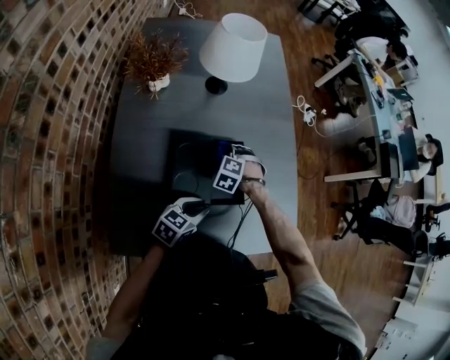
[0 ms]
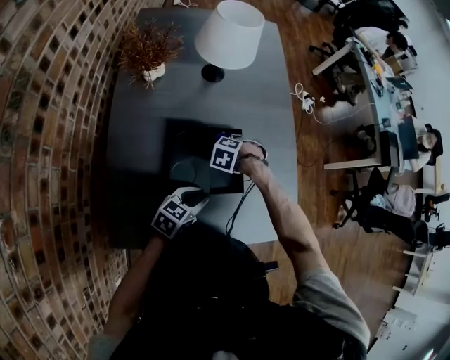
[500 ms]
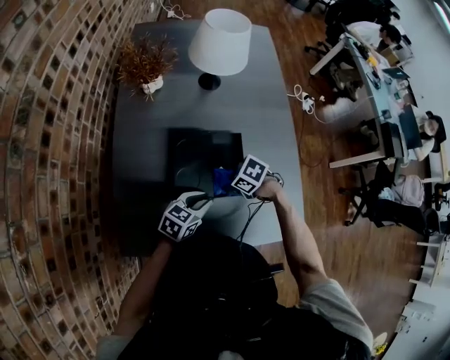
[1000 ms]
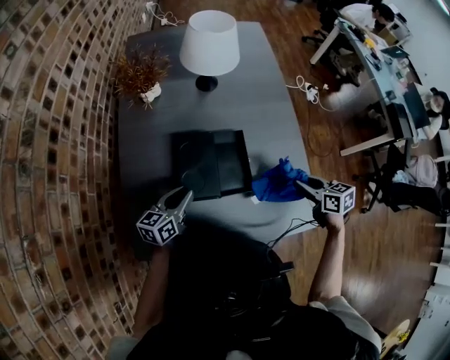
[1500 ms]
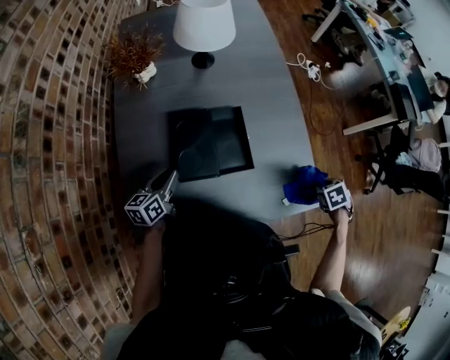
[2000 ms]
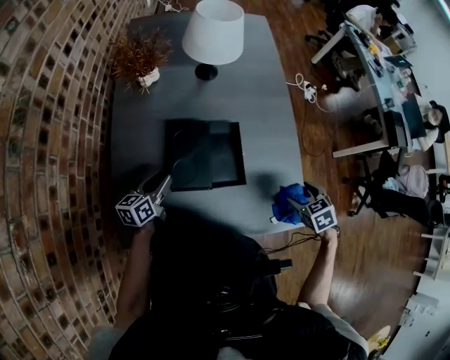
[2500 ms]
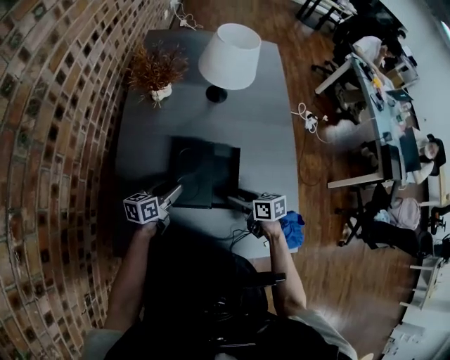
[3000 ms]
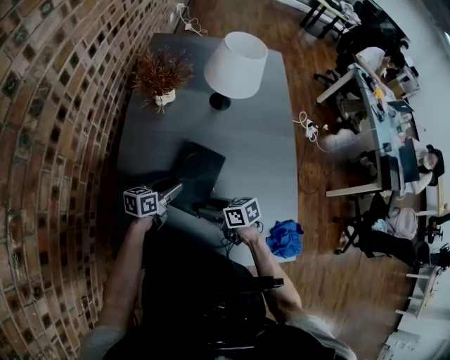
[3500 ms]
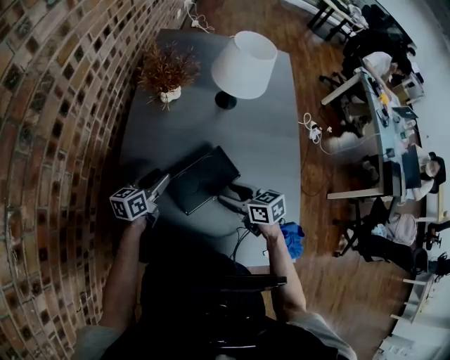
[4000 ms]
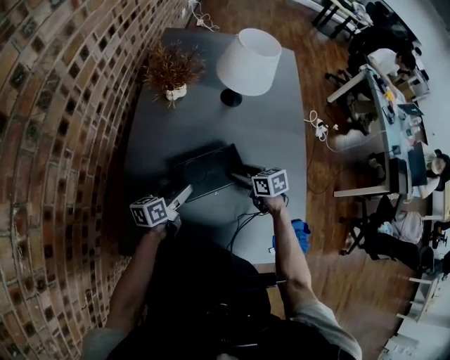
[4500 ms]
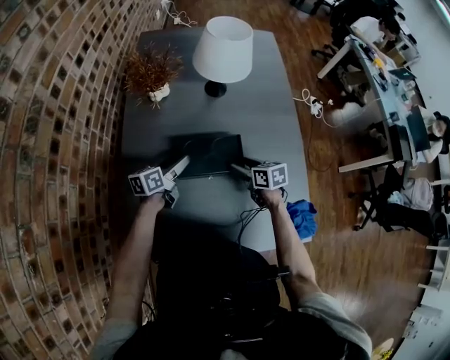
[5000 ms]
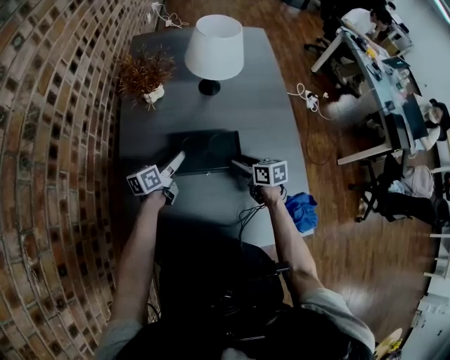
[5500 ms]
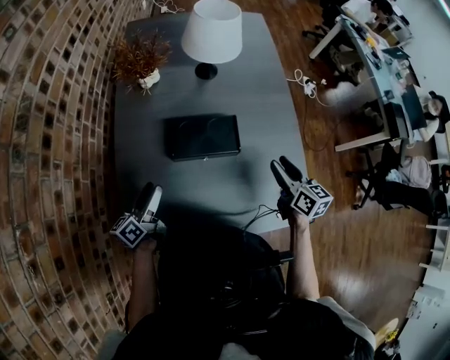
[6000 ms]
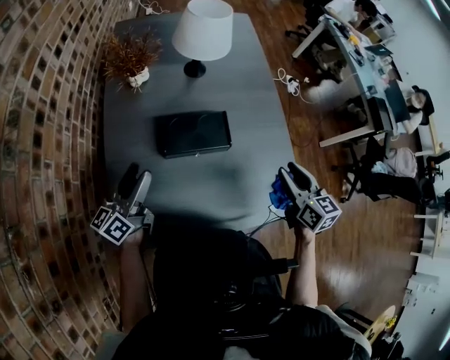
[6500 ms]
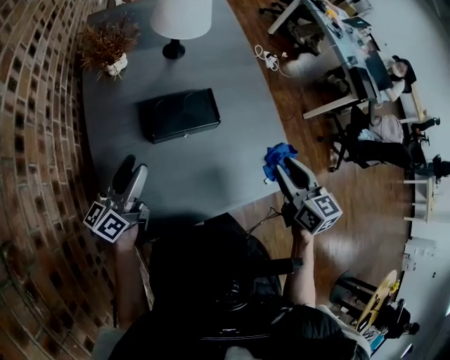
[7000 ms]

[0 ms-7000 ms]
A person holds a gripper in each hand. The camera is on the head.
0 ms to 2000 ms: The left gripper moves approximately 15 cm, and changes its angle by about 30 degrees, while the right gripper travels upward and back again, approximately 15 cm each way, and rolls clockwise, seen from behind, by approximately 60 degrees.
2000 ms to 3500 ms: The right gripper moves some 40 cm, points its fingers about 40 degrees further upward, and opens its fingers; the left gripper changes place by some 5 cm, and opens its fingers.
3500 ms to 5000 ms: The left gripper moves forward, roughly 5 cm, and opens. Meanwhile the right gripper travels to the right and forward by approximately 15 cm, and changes its angle by some 20 degrees.
5000 ms to 7000 ms: The left gripper moves upward, backward and to the left, approximately 20 cm, and rotates some 30 degrees; the right gripper shifts about 30 cm upward, backward and to the right, and changes its angle by some 40 degrees.

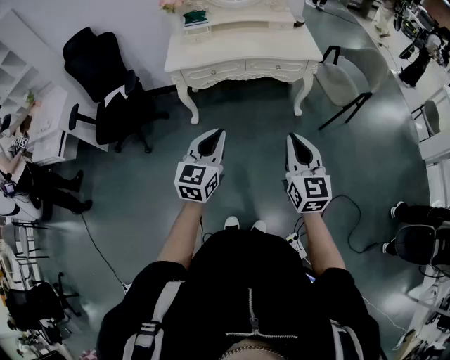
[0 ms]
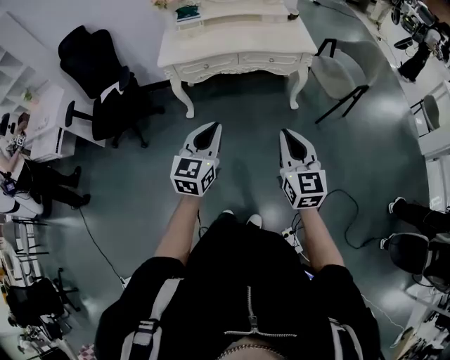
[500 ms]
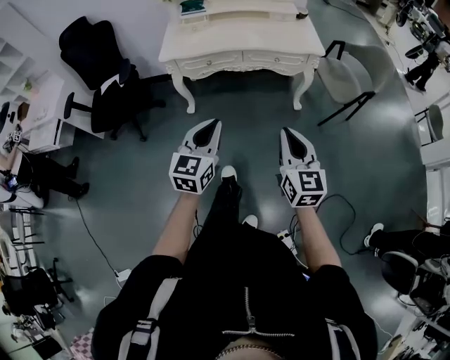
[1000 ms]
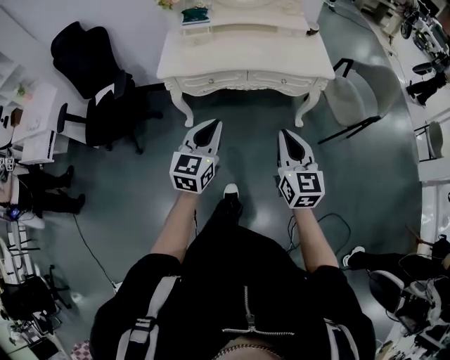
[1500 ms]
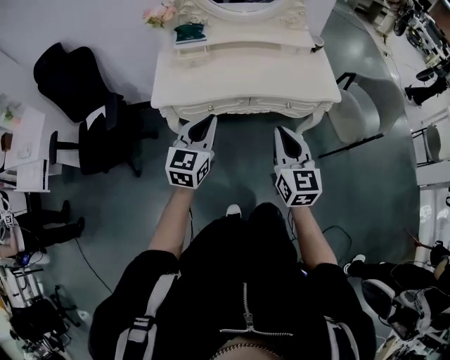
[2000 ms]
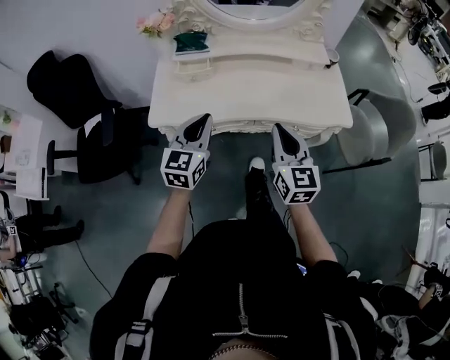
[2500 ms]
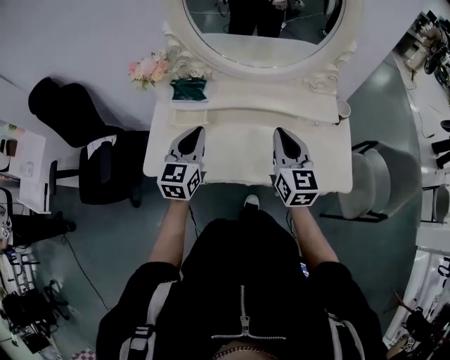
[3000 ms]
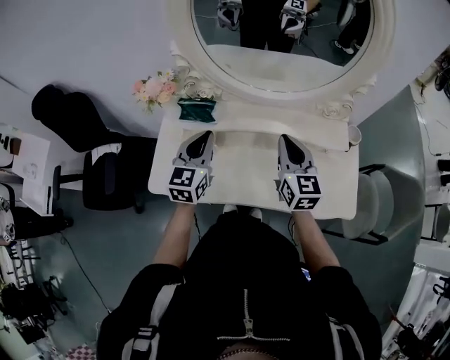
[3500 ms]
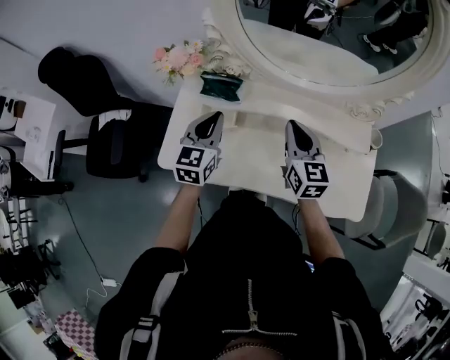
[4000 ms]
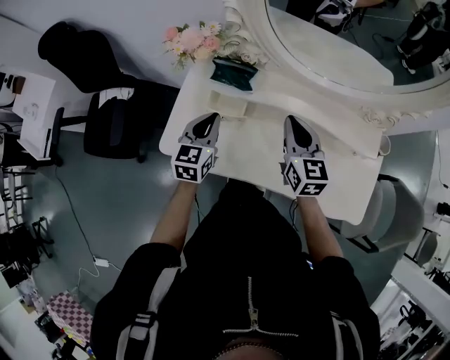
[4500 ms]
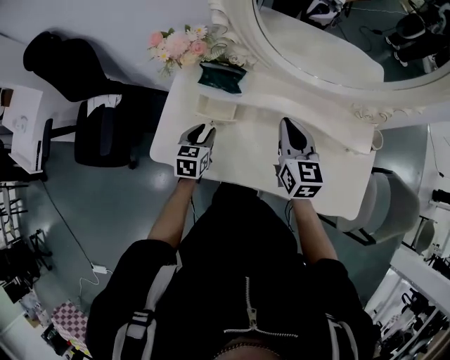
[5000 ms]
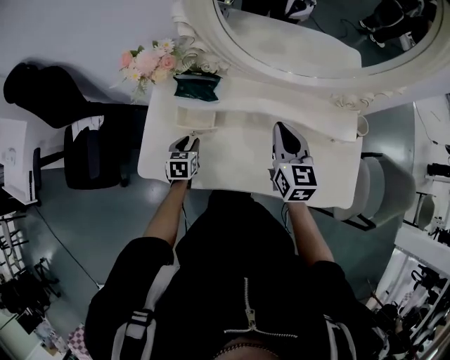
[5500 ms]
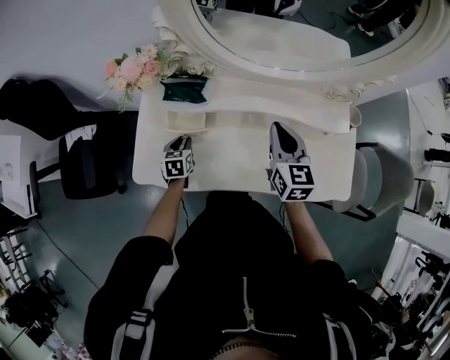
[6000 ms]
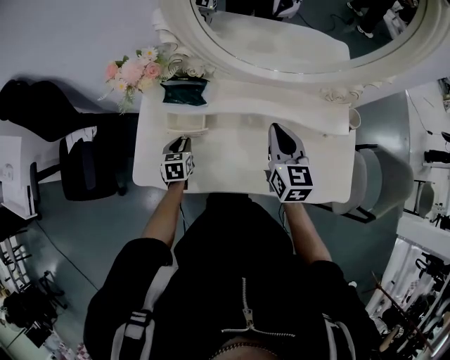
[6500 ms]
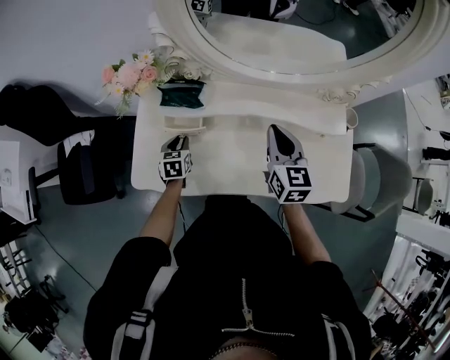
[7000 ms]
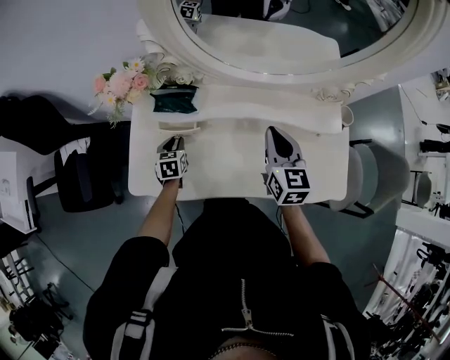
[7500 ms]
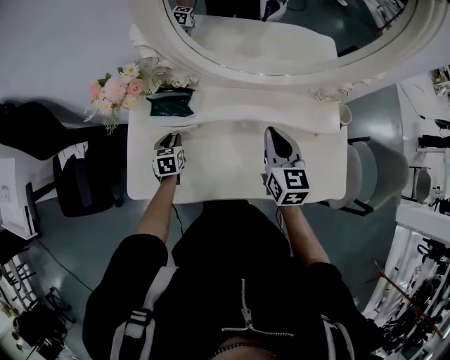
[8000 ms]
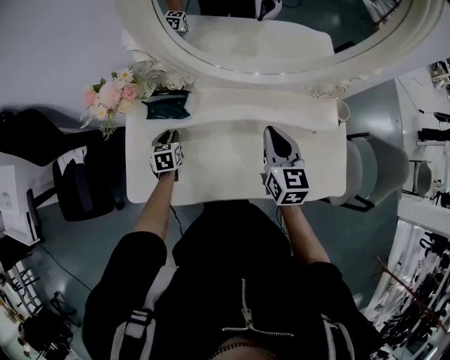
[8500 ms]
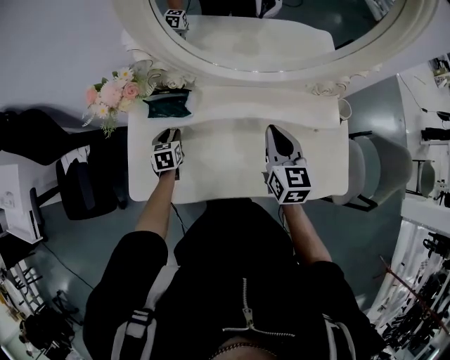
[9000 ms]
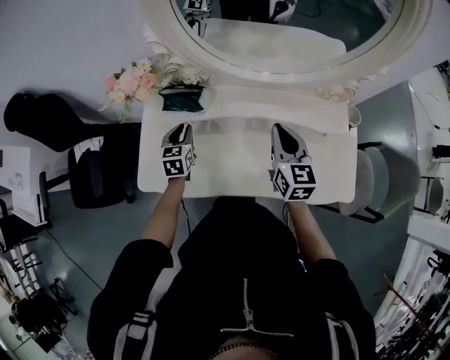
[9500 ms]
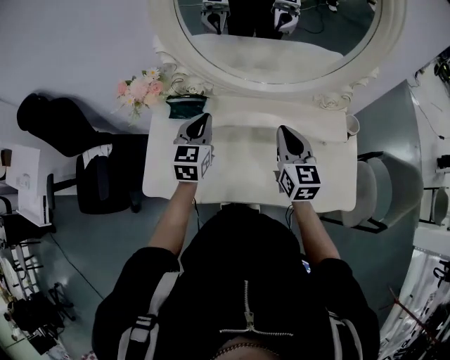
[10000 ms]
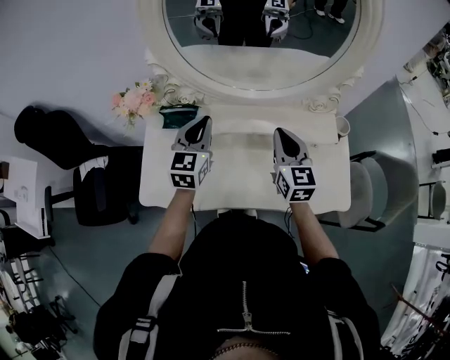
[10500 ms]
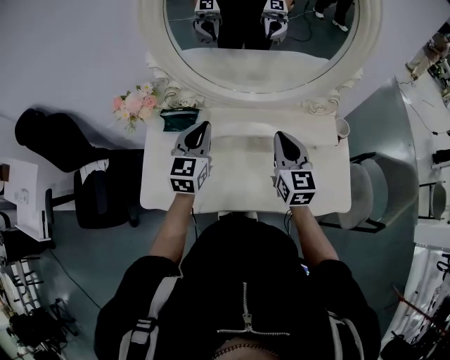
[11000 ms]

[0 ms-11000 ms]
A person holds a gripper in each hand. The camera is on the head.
0 ms to 2000 ms: Both grippers travel together forward, approximately 35 cm.
2000 ms to 3500 ms: Both grippers are carried forward, some 50 cm.
3500 ms to 5500 ms: The left gripper moves downward, about 30 cm, points its fingers some 30 degrees further downward, and opens its fingers. The right gripper heads downward and to the left, covering about 10 cm.
5500 ms to 7500 ms: The left gripper is displaced forward by roughly 5 cm.
7500 ms to 9000 ms: The grippers move only a little.
9000 ms to 11000 ms: The left gripper heads upward and to the right, covering roughly 30 cm, tilts its fingers some 30 degrees upward, and closes its fingers; the right gripper shifts by about 5 cm.

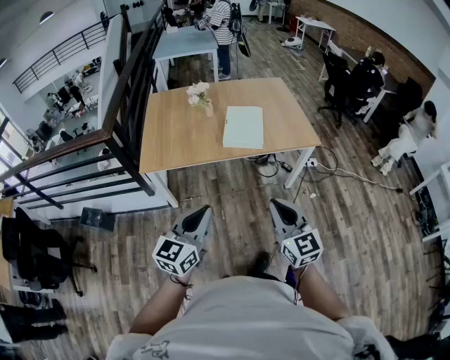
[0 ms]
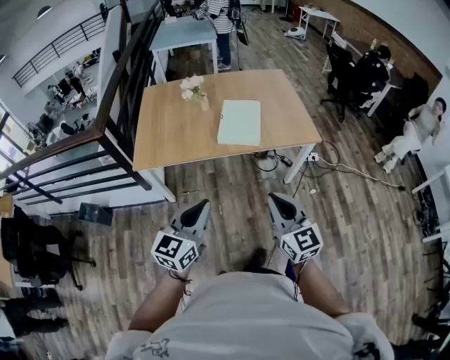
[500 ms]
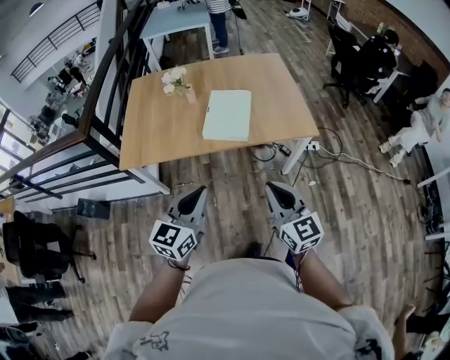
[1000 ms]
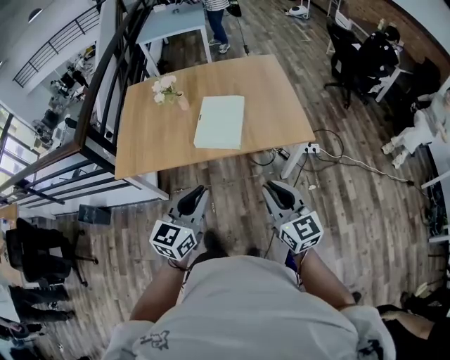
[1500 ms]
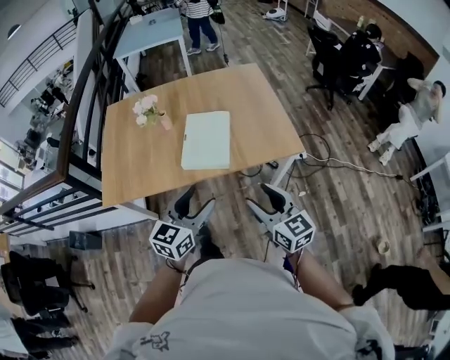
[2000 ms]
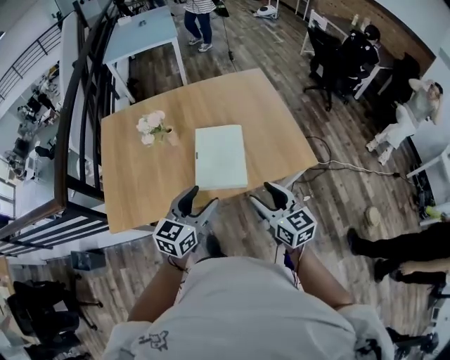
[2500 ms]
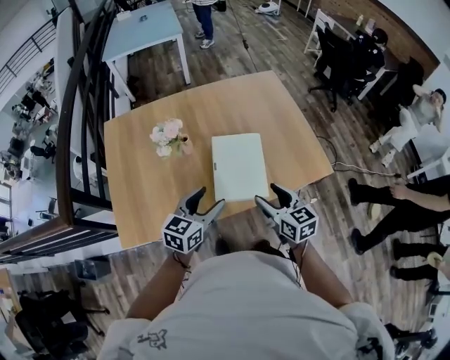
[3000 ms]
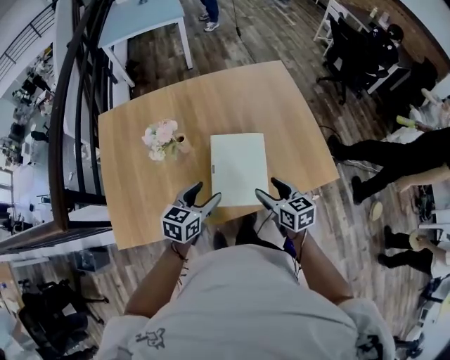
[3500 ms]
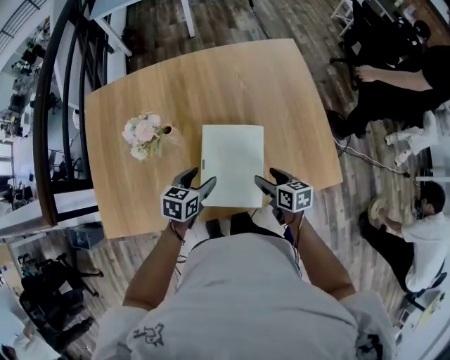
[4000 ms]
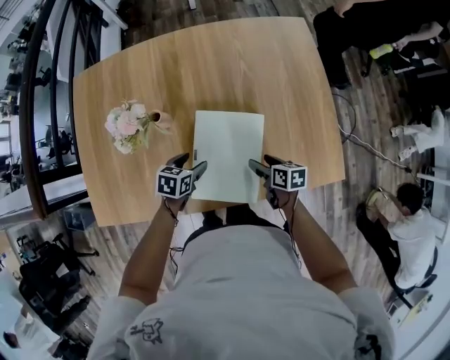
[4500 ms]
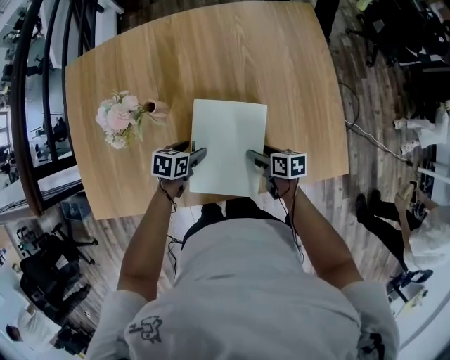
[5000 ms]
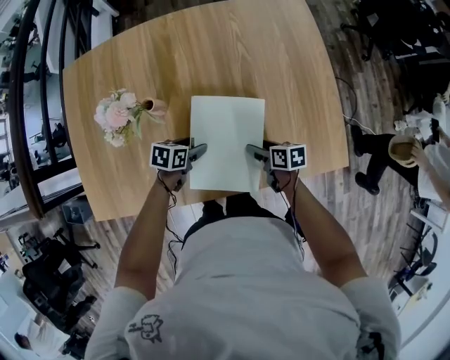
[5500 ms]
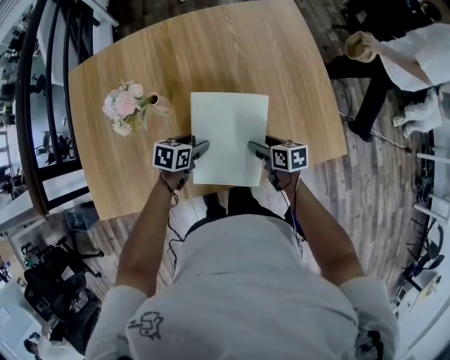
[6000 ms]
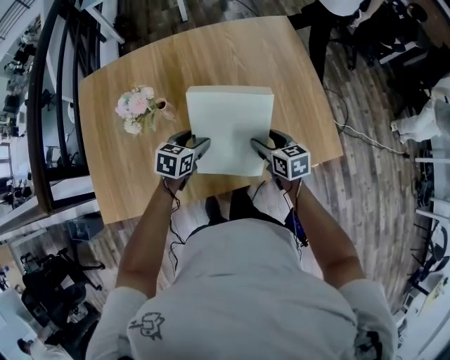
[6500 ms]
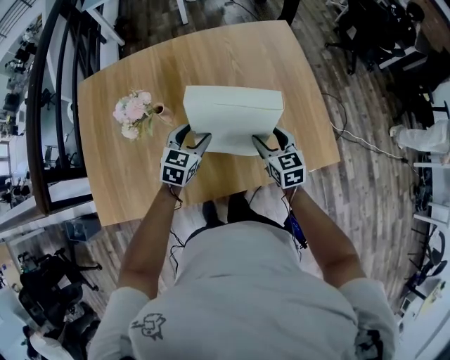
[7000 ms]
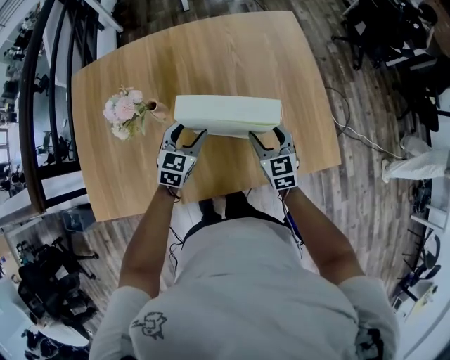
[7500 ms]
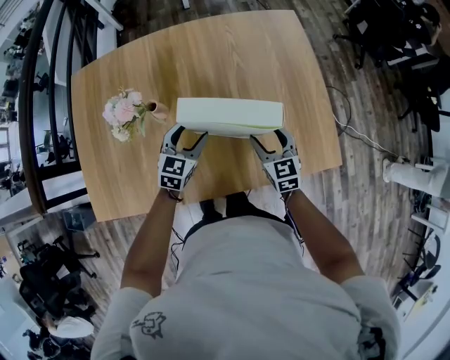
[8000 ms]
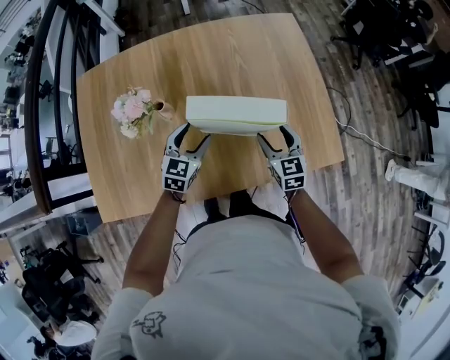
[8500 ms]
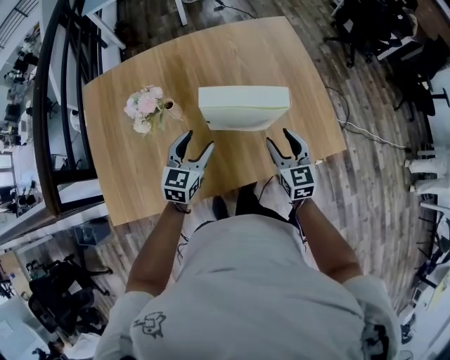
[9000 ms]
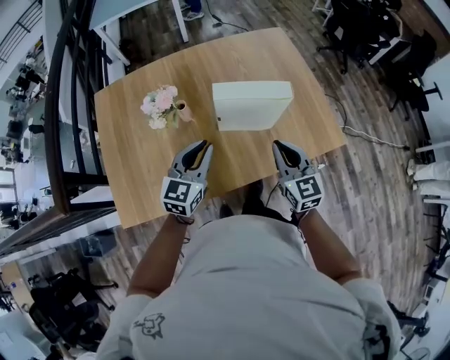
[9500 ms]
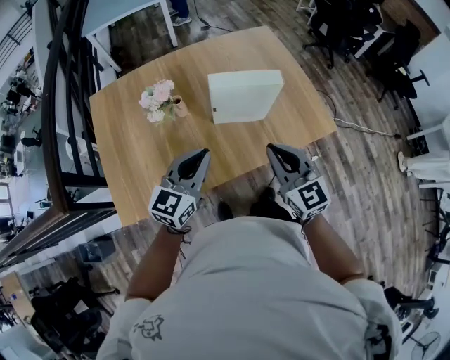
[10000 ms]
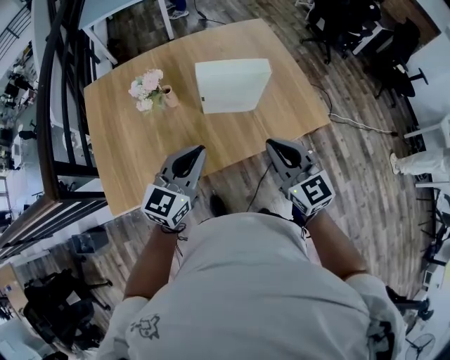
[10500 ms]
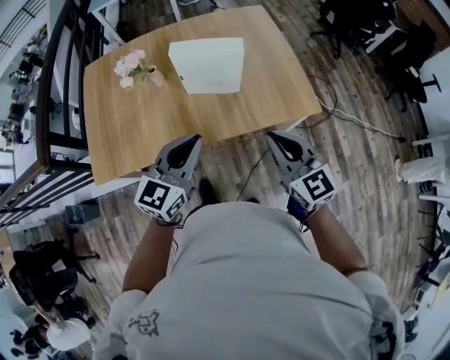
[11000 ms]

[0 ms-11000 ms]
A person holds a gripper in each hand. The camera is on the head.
0 ms to 2000 ms: Both grippers travel together forward and to the right, roughly 30 cm. The left gripper opens up. The right gripper opens up.
2000 ms to 3500 ms: The two grippers go some 35 cm forward, to the left and downward. The right gripper swivels some 20 degrees, while the left gripper changes its angle by approximately 20 degrees.
3500 ms to 5500 ms: Both grippers move downward, about 25 cm. The left gripper changes its angle by roughly 40 degrees, while the right gripper rotates approximately 40 degrees.
5500 ms to 7500 ms: The two grippers go approximately 15 cm upward. The left gripper changes its angle by some 50 degrees, while the right gripper changes its angle by some 60 degrees.
7500 ms to 9000 ms: The two grippers go some 10 cm backward and upward.
9000 ms to 11000 ms: The right gripper shifts roughly 25 cm backward and upward, rotates approximately 20 degrees, and closes. The left gripper goes some 30 cm backward, upward and to the right, and closes its fingers.
